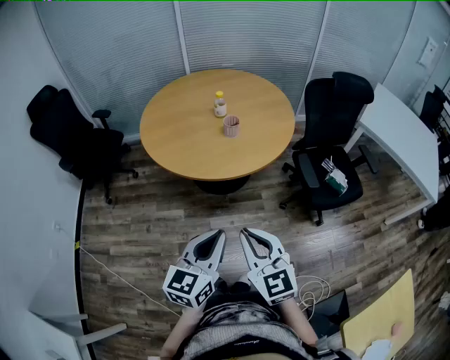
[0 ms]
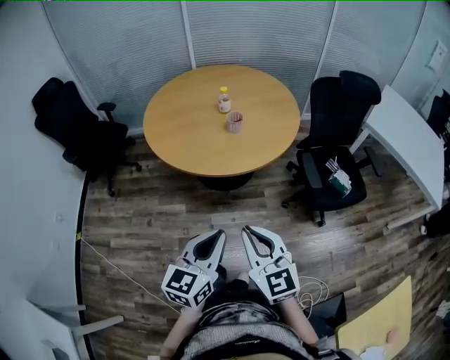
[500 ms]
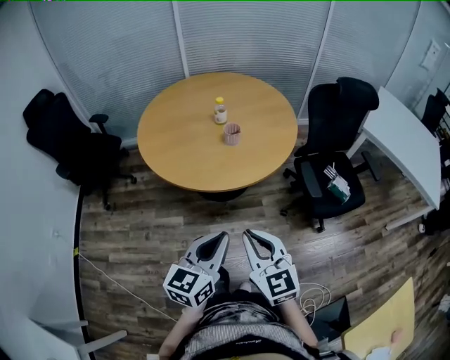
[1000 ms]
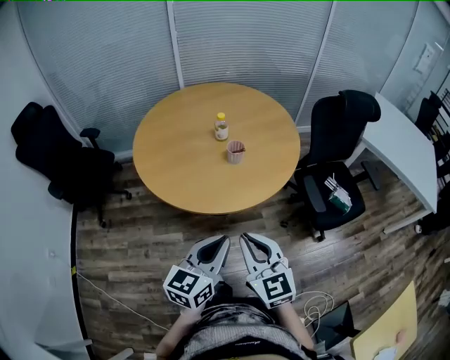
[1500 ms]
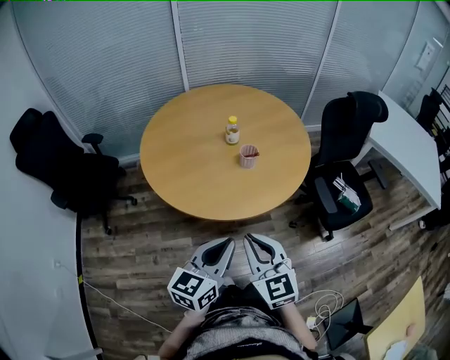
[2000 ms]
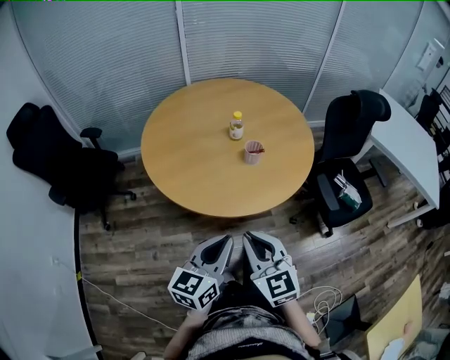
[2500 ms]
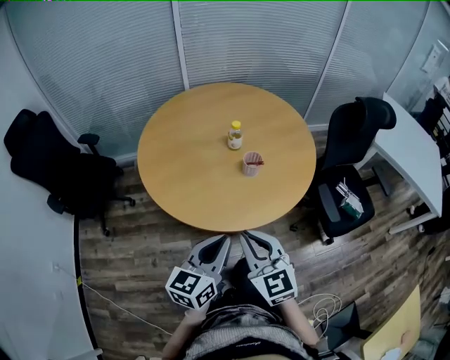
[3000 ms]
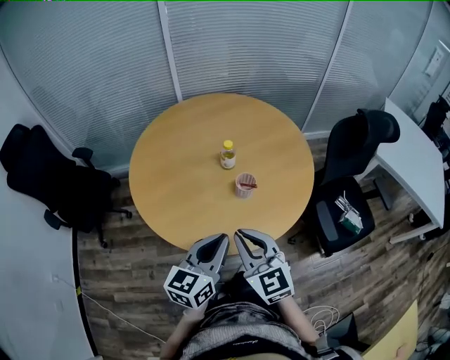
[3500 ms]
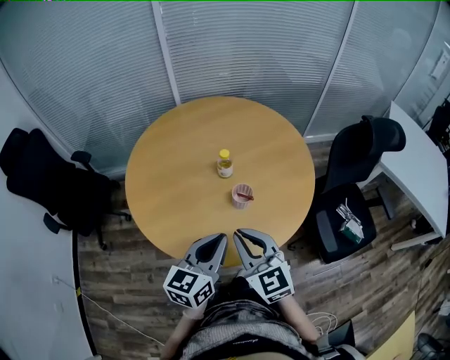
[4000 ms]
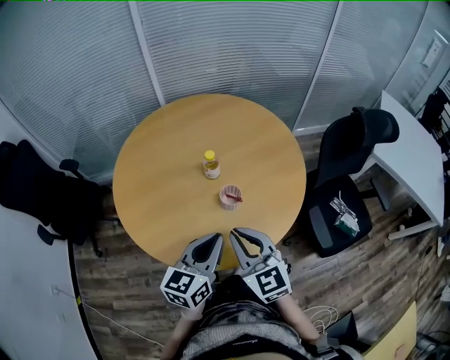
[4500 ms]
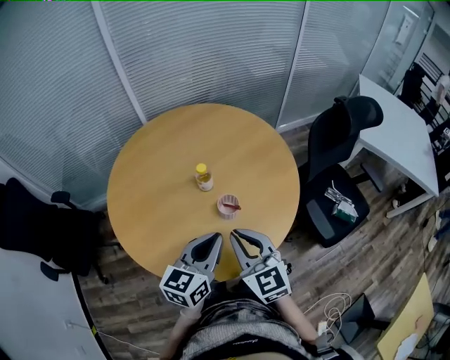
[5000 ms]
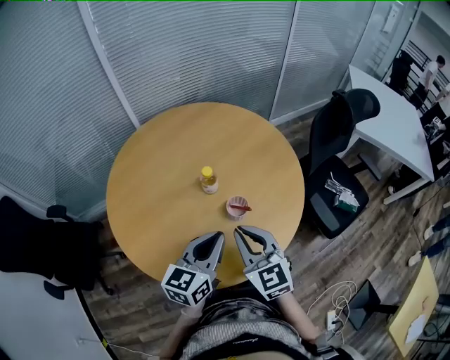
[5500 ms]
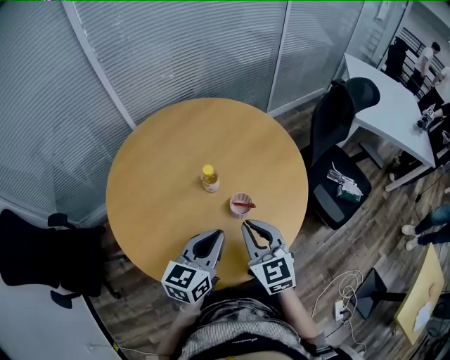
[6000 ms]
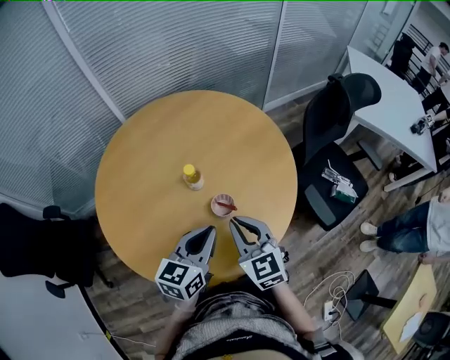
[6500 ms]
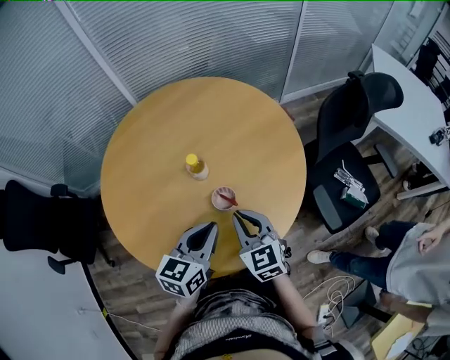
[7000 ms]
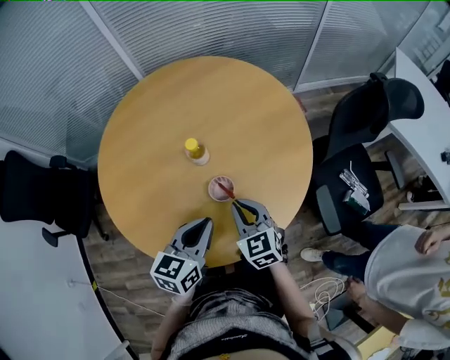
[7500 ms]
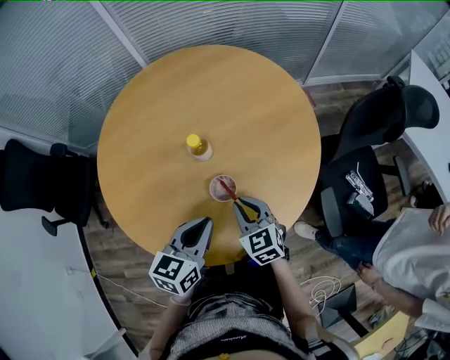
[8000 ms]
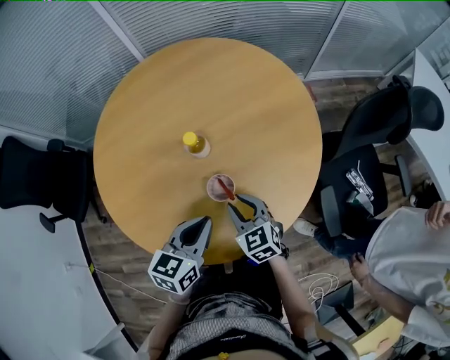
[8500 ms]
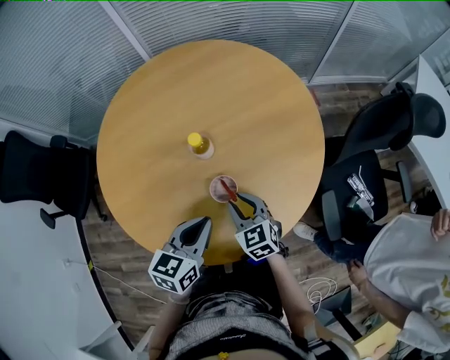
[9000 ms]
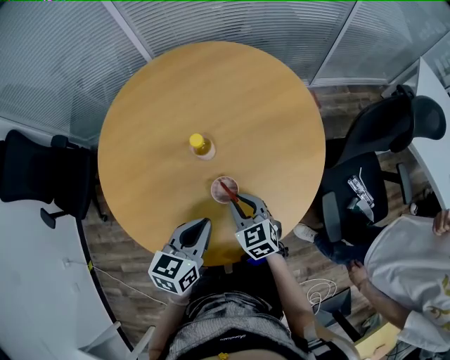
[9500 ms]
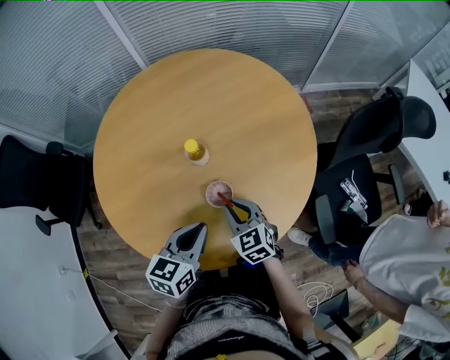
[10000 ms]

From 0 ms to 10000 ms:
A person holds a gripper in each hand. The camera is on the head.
From 0 ms to 2000 ms: Both grippers move forward and to the left, approximately 20 cm.
From 2000 ms to 4000 ms: The two grippers go some 25 cm forward.
From 4000 ms to 6000 ms: The right gripper goes about 10 cm forward, and changes its angle by about 30 degrees, while the left gripper moves forward and to the left, roughly 10 cm, and rotates roughly 20 degrees.
From 6000 ms to 8000 ms: The right gripper travels downward, to the right and forward by approximately 20 cm, and swivels roughly 30 degrees. Meanwhile the left gripper is displaced to the right and downward by some 10 cm, and turns by about 20 degrees.
From 8000 ms to 10000 ms: The grippers stay close to where they were, moving slightly.

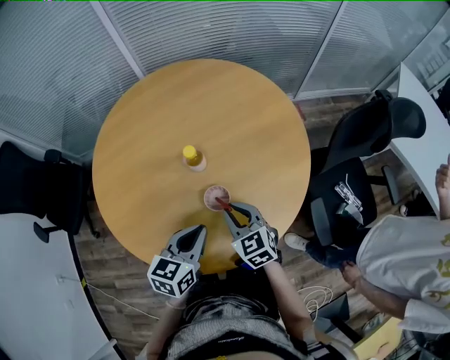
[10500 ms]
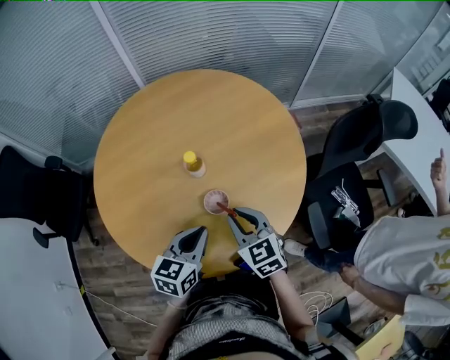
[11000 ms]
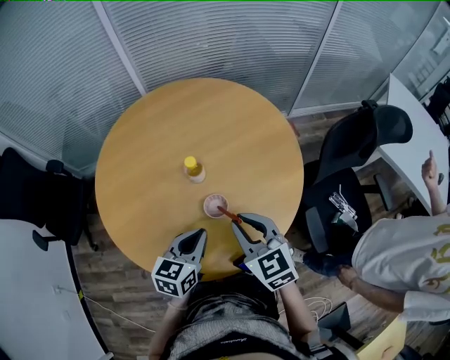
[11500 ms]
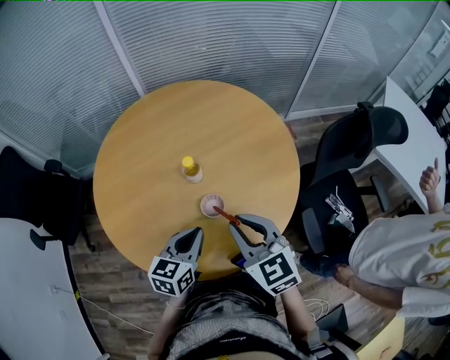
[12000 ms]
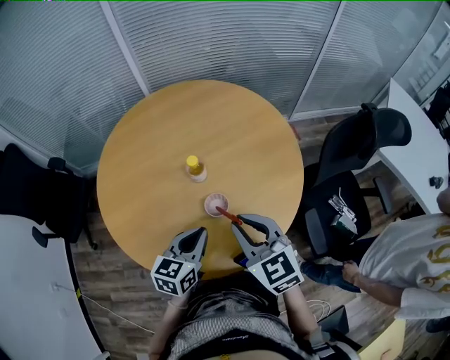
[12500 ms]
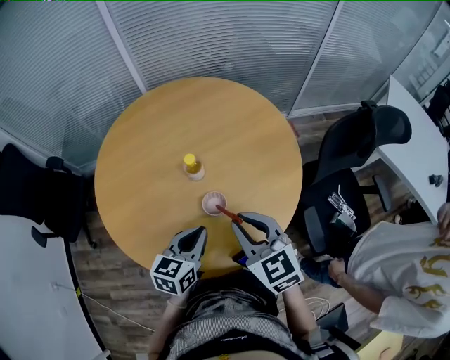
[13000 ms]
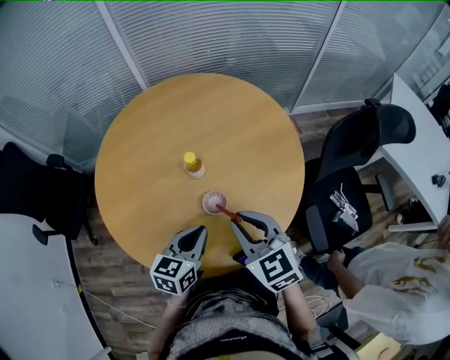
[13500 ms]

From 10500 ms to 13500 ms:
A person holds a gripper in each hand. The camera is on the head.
From 10500 ms to 12000 ms: The right gripper heads upward, covering some 15 cm.
From 12000 ms to 13500 ms: There are only small adjustments of the grippers.

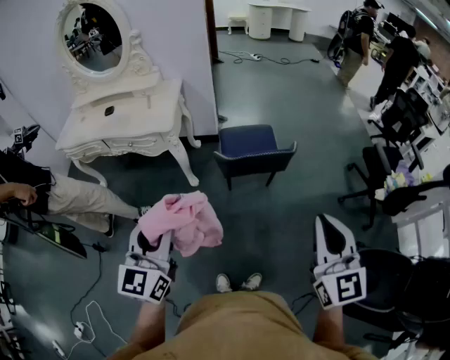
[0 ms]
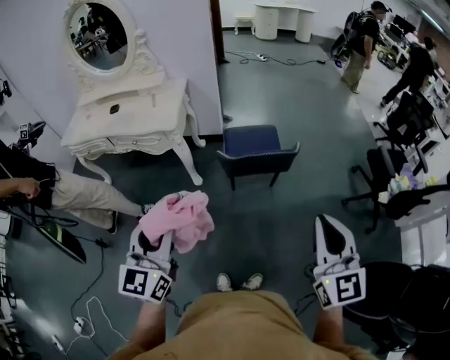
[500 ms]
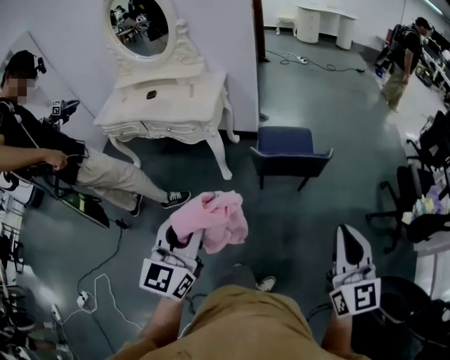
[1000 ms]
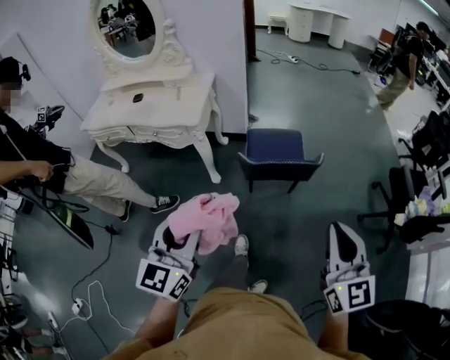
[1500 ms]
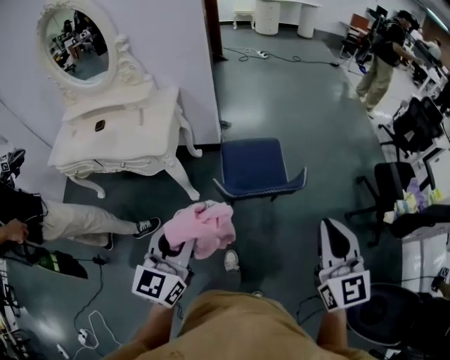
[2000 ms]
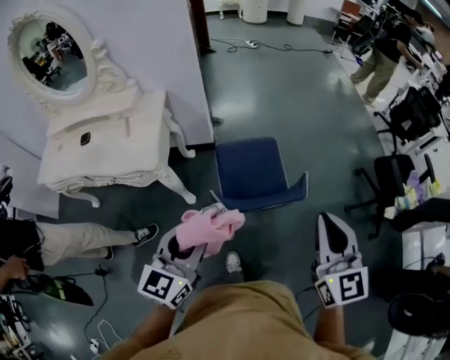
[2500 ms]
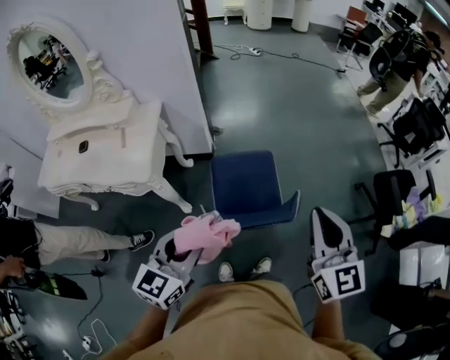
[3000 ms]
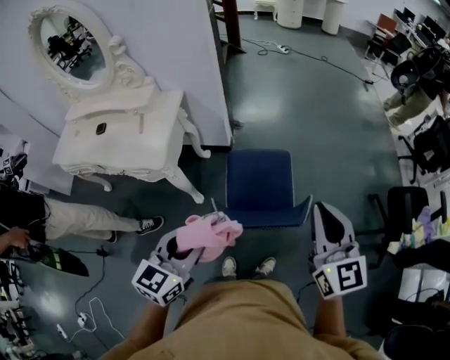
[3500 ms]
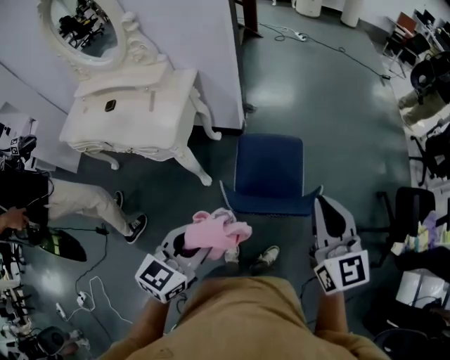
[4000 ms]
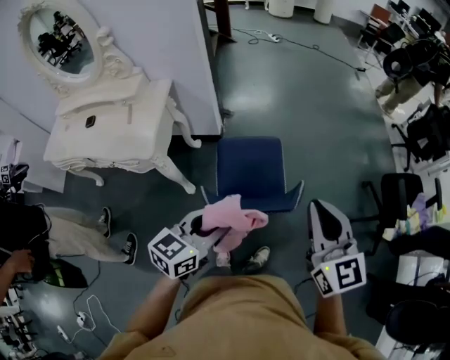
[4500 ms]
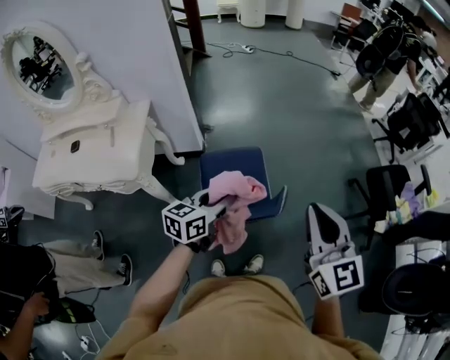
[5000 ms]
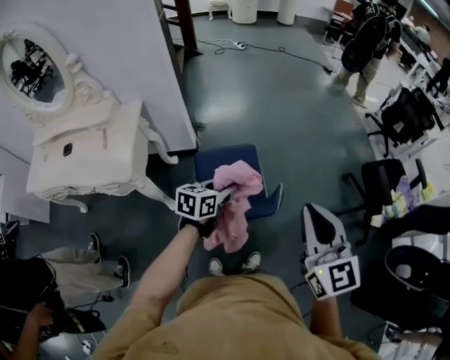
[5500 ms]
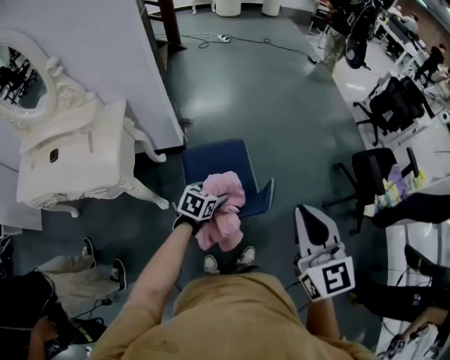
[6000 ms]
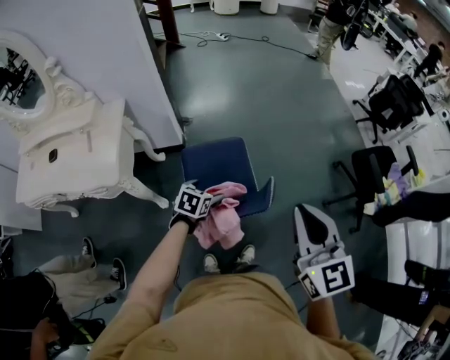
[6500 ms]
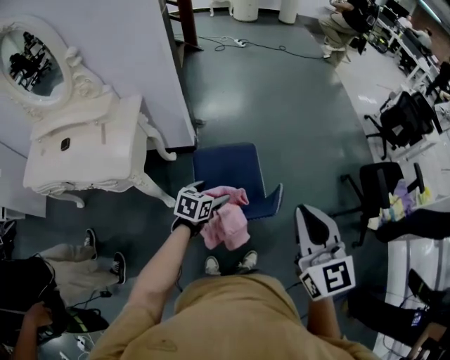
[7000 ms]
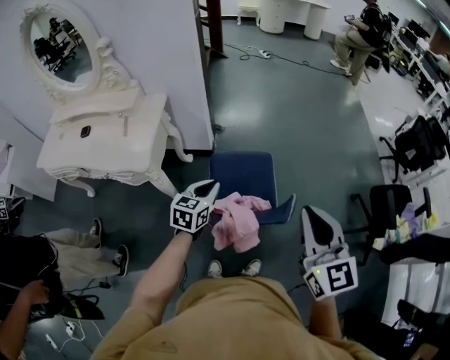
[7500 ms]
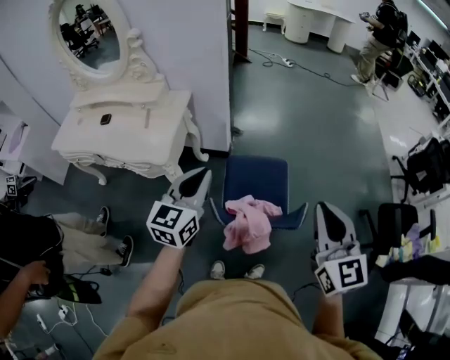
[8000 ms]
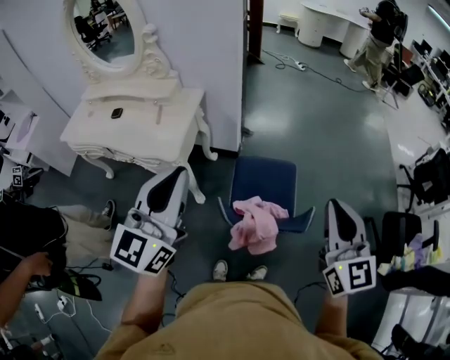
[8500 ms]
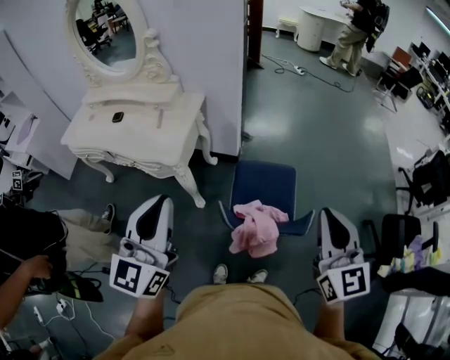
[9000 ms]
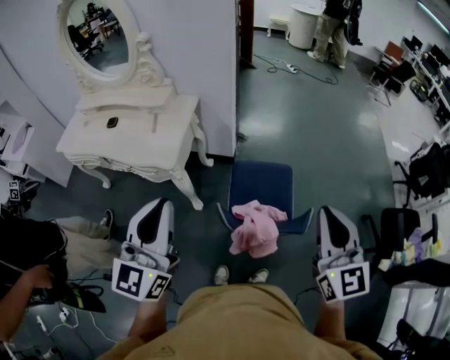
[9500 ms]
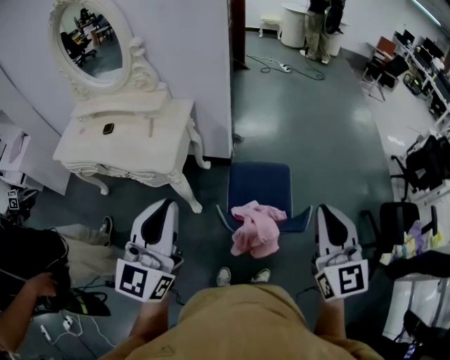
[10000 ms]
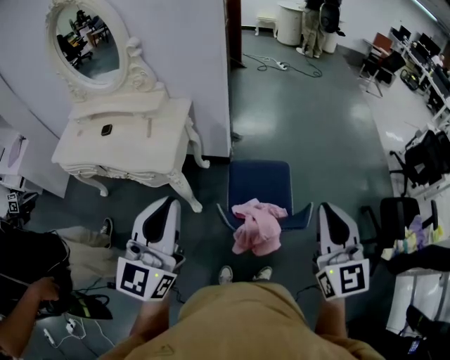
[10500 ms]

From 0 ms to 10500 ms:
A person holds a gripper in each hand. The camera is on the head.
From 0 ms to 2000 ms: Both grippers travel together forward, some 20 cm.
From 2000 ms to 4000 ms: The left gripper heads forward, to the right and downward, covering roughly 15 cm; the right gripper travels forward by about 20 cm.
From 4000 ms to 6500 ms: The left gripper heads downward and forward, covering roughly 35 cm, rotates some 30 degrees, and opens, while the right gripper moves to the right, roughly 10 cm.
From 6500 ms to 8500 ms: The left gripper is displaced upward by approximately 40 cm, tips its fingers upward by about 60 degrees, and closes up, while the right gripper moves about 10 cm.

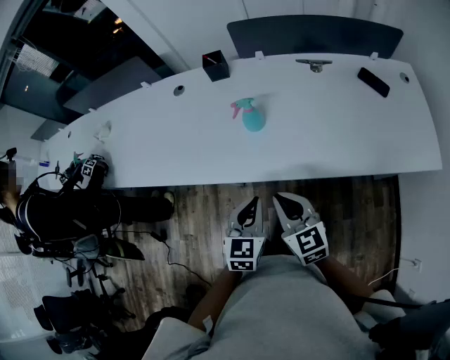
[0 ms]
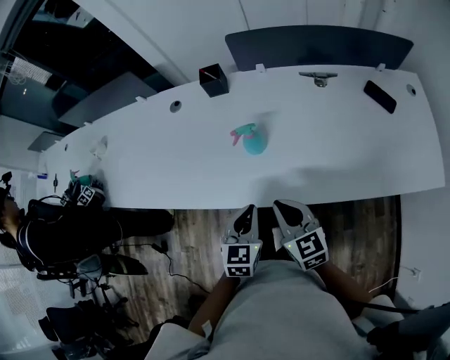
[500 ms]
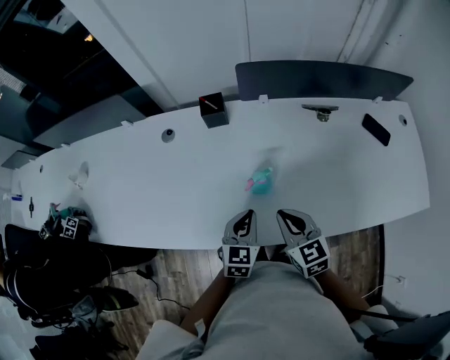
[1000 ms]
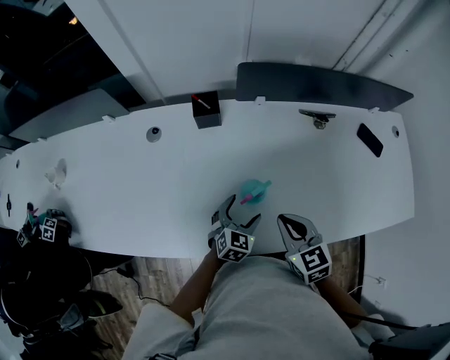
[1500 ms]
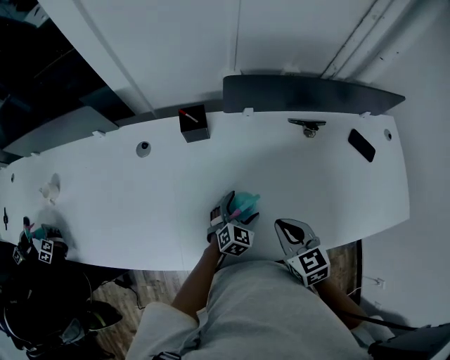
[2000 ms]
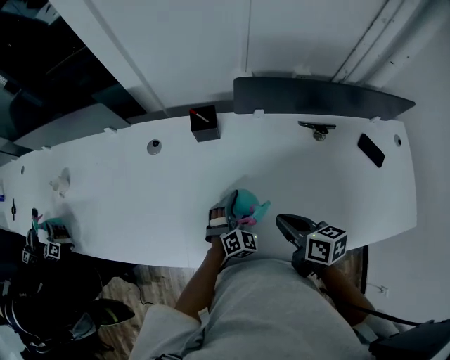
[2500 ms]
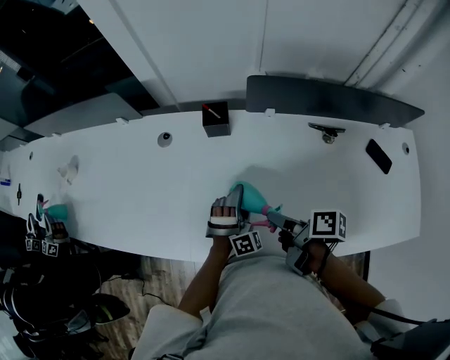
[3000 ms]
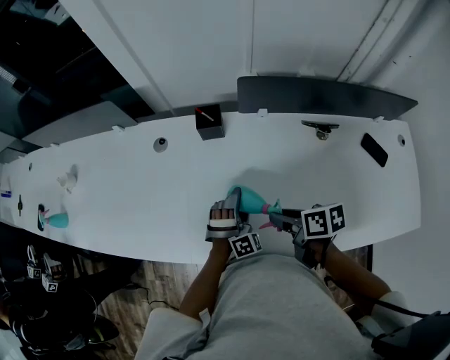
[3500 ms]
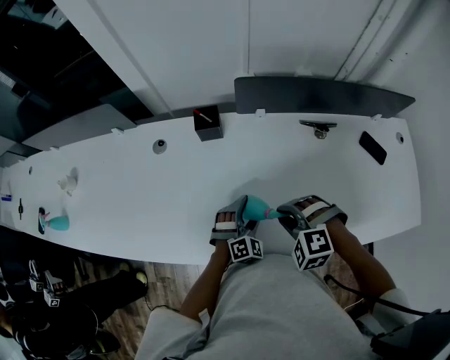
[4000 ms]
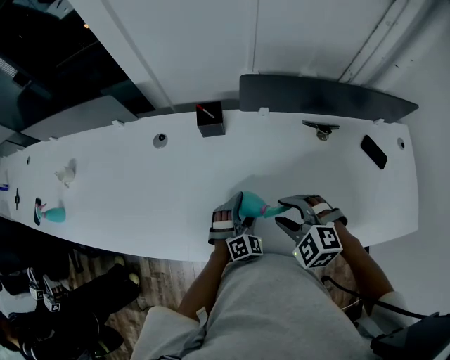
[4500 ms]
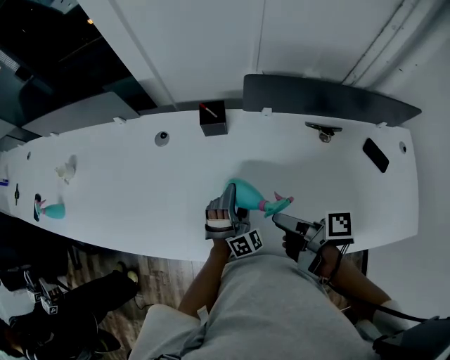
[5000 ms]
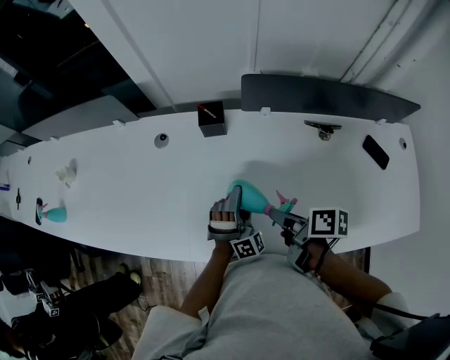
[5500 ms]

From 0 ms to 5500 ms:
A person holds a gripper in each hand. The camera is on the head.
From 0 ms to 2000 ms: The right gripper moves forward, roughly 25 cm, while the left gripper is displaced forward and downward by some 35 cm, turns by some 30 degrees, and opens.
From 2000 ms to 3500 ms: The left gripper shifts by approximately 5 cm, and swivels about 50 degrees. Meanwhile the right gripper swivels roughly 50 degrees.
From 3500 ms to 5500 ms: The right gripper swivels some 20 degrees.
